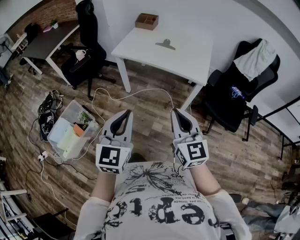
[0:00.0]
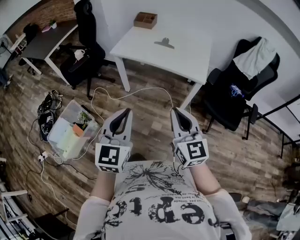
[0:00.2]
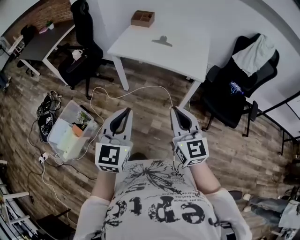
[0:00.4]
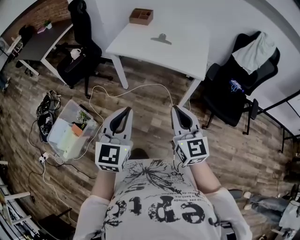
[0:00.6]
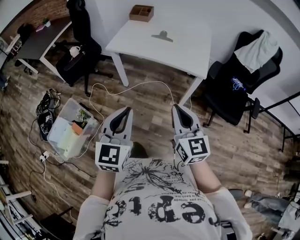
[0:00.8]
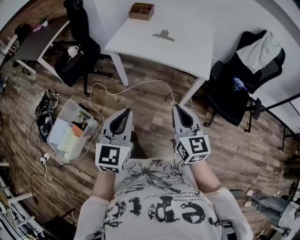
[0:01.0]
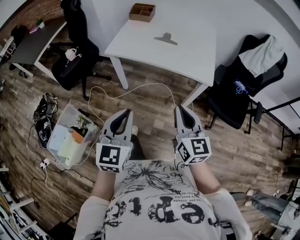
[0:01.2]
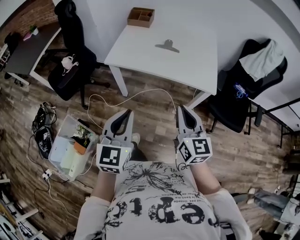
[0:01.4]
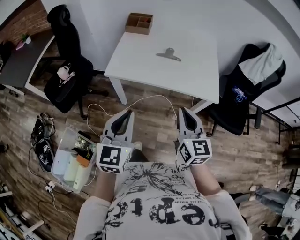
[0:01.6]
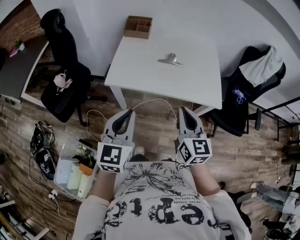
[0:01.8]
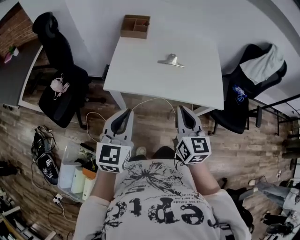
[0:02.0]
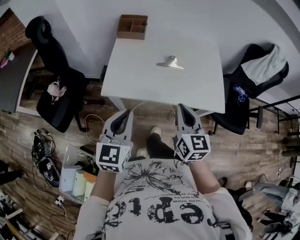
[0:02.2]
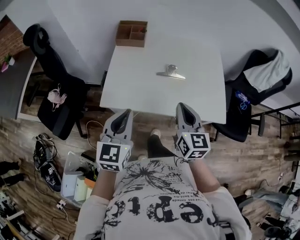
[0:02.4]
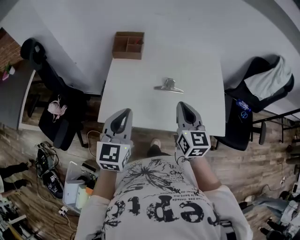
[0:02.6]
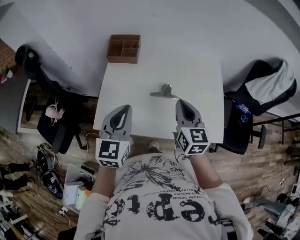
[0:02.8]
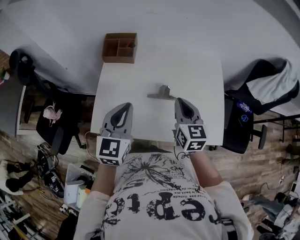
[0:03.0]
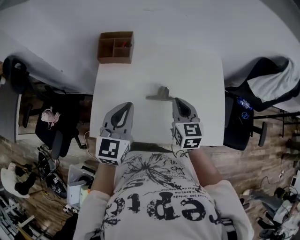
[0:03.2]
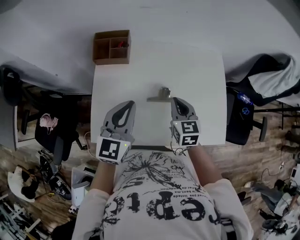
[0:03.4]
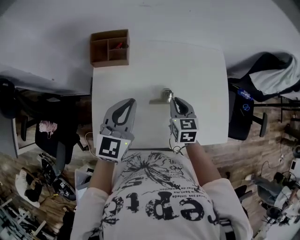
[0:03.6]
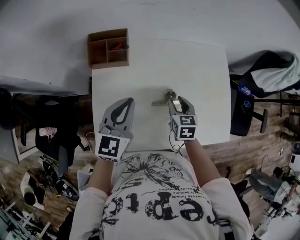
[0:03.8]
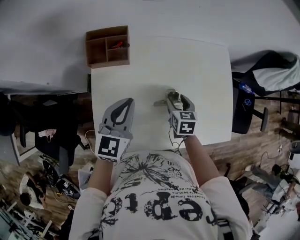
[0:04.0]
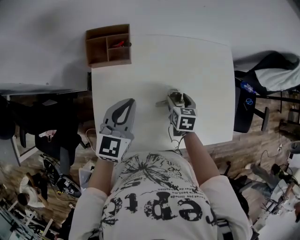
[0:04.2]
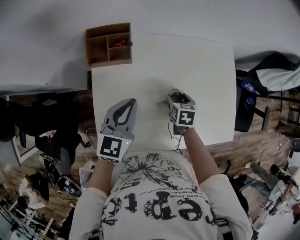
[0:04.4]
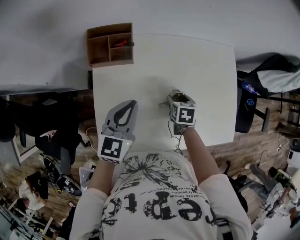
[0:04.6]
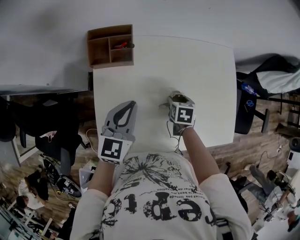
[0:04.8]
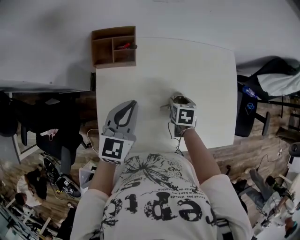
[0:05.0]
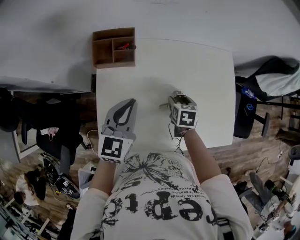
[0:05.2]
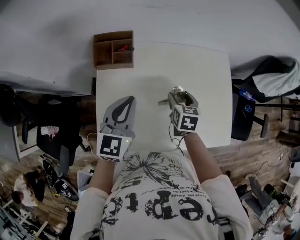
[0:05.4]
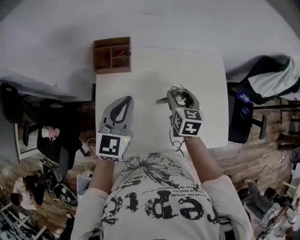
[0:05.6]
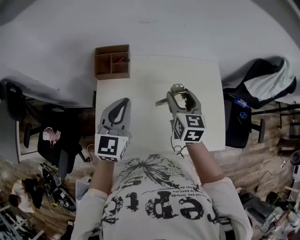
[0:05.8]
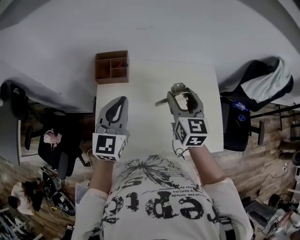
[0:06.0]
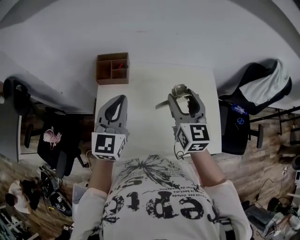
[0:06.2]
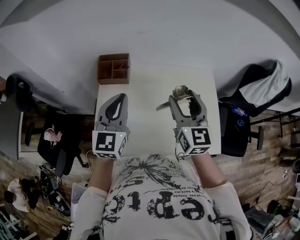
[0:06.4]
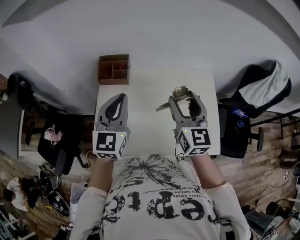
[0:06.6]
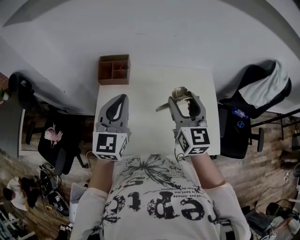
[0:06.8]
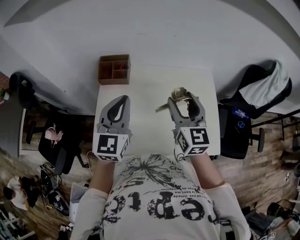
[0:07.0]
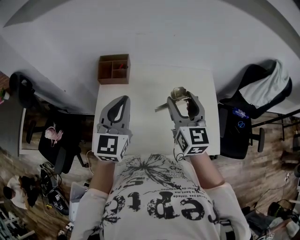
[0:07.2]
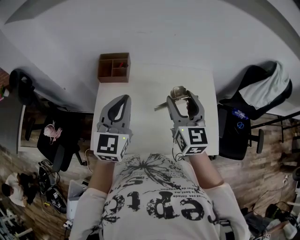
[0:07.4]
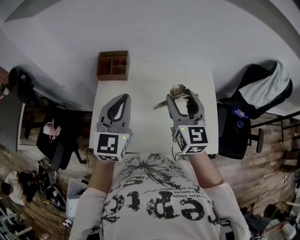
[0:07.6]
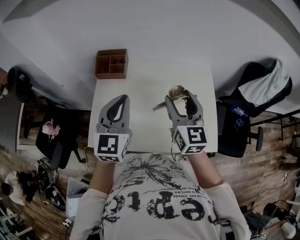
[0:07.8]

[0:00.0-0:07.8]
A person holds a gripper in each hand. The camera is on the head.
0:00.0 to 0:01.6: The grippers both shift forward by some 25 cm. The right gripper changes its angle by about 20 degrees.
0:01.6 to 0:03.2: Both grippers are carried forward, approximately 40 cm.
0:03.2 to 0:04.6: The left gripper heads forward, downward and to the left, covering some 15 cm. The right gripper is displaced downward by roughly 20 cm, tilts its fingers roughly 40 degrees downward, and opens.
0:04.6 to 0:06.2: The left gripper goes some 15 cm upward, and rotates some 20 degrees, while the right gripper travels upward by about 35 cm, and tilts its fingers some 50 degrees upward.
0:06.2 to 0:07.8: The left gripper ends up roughly 5 cm from where it was.

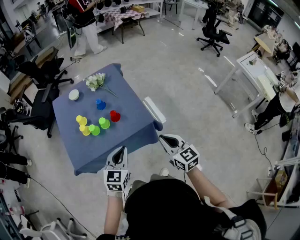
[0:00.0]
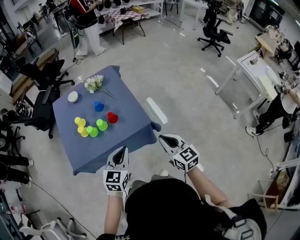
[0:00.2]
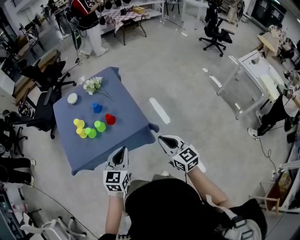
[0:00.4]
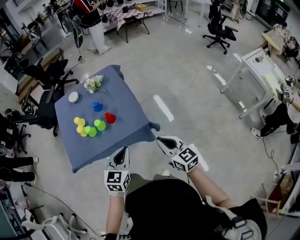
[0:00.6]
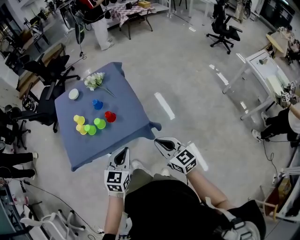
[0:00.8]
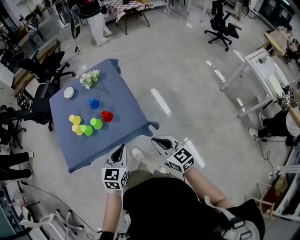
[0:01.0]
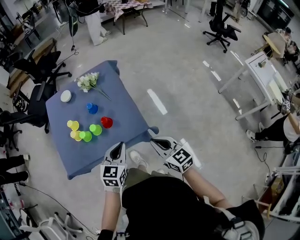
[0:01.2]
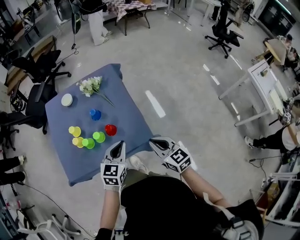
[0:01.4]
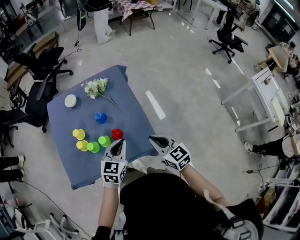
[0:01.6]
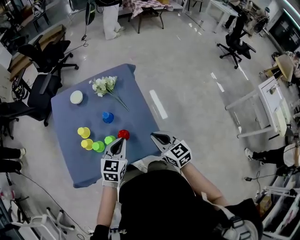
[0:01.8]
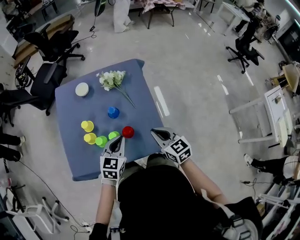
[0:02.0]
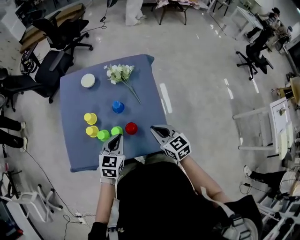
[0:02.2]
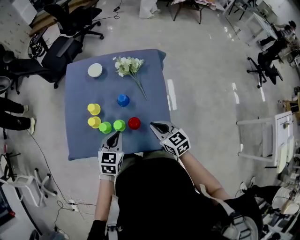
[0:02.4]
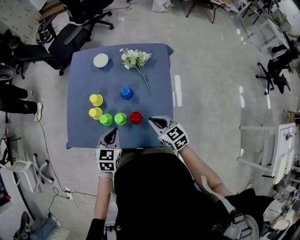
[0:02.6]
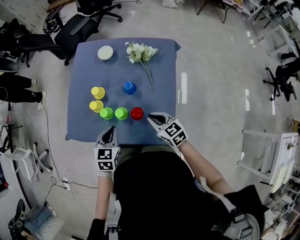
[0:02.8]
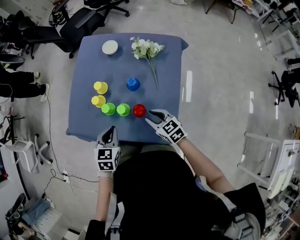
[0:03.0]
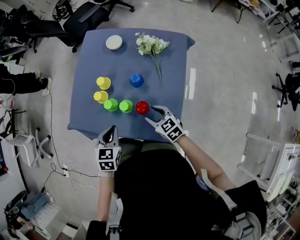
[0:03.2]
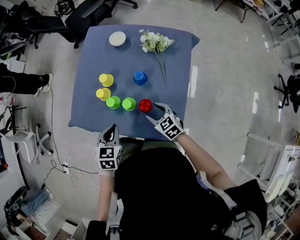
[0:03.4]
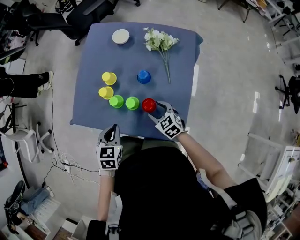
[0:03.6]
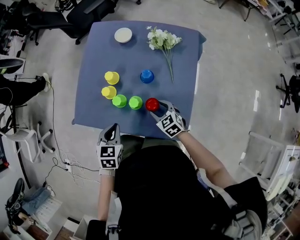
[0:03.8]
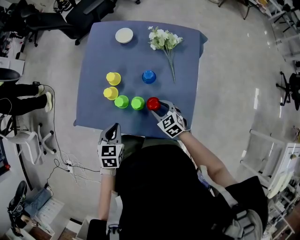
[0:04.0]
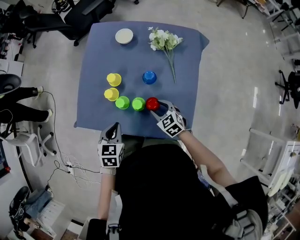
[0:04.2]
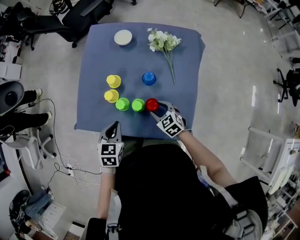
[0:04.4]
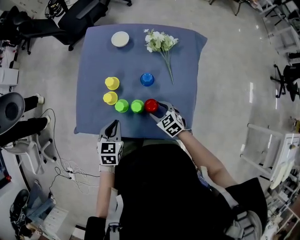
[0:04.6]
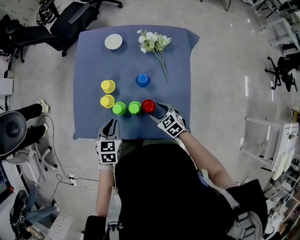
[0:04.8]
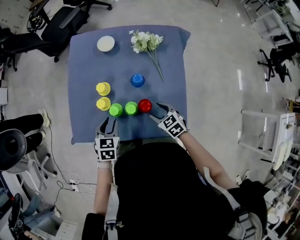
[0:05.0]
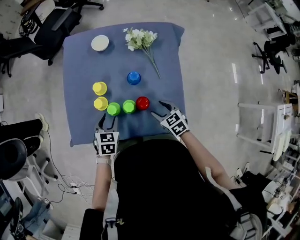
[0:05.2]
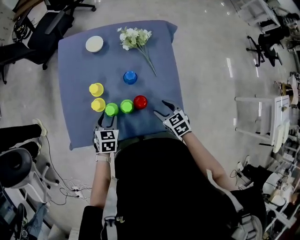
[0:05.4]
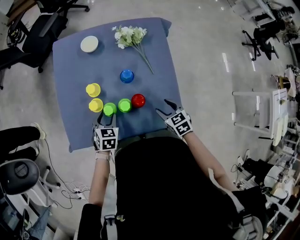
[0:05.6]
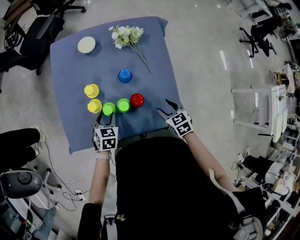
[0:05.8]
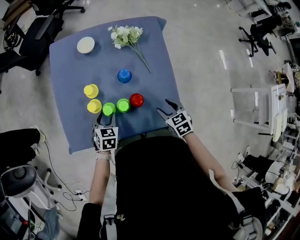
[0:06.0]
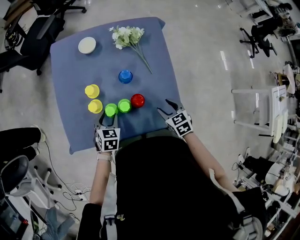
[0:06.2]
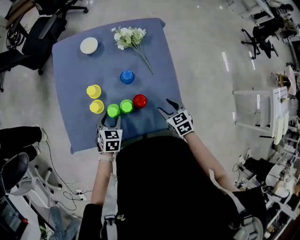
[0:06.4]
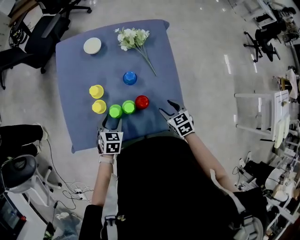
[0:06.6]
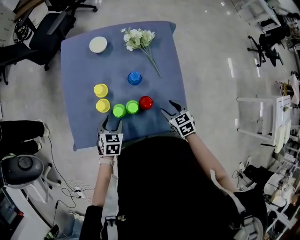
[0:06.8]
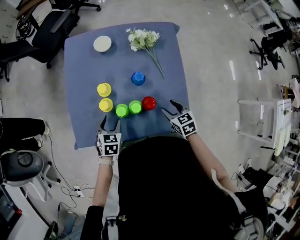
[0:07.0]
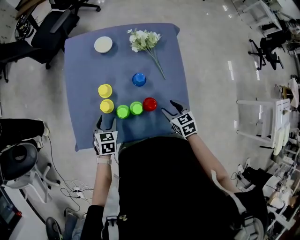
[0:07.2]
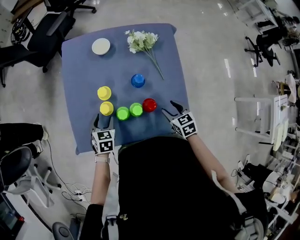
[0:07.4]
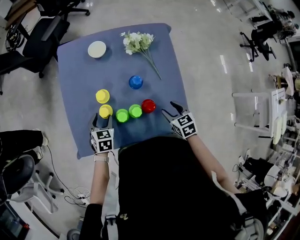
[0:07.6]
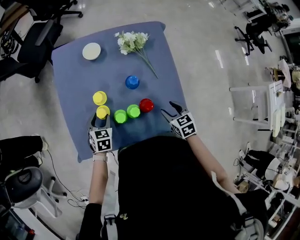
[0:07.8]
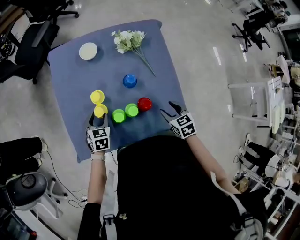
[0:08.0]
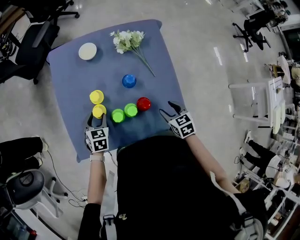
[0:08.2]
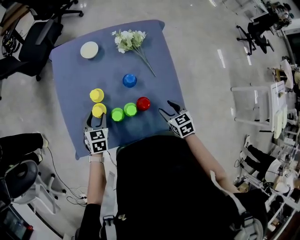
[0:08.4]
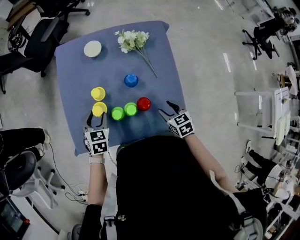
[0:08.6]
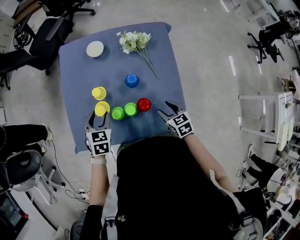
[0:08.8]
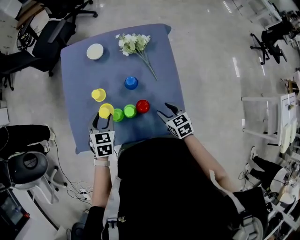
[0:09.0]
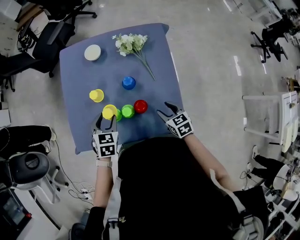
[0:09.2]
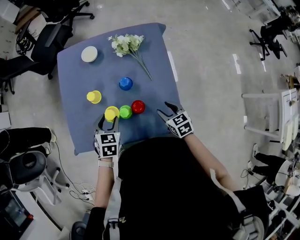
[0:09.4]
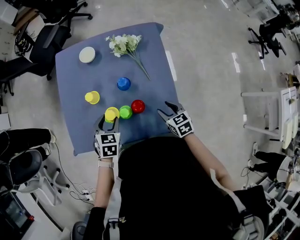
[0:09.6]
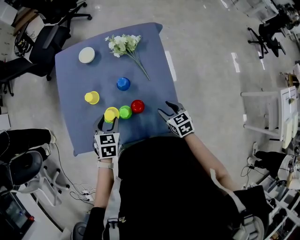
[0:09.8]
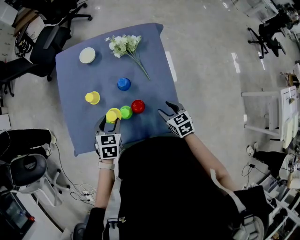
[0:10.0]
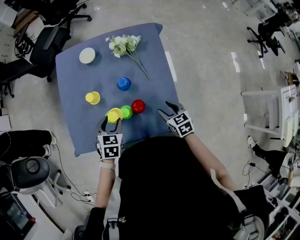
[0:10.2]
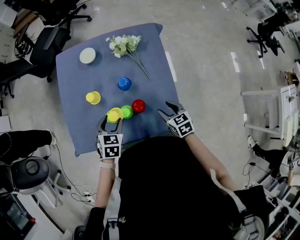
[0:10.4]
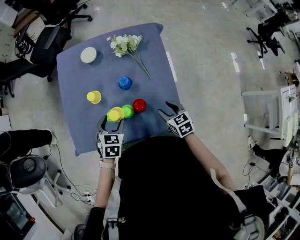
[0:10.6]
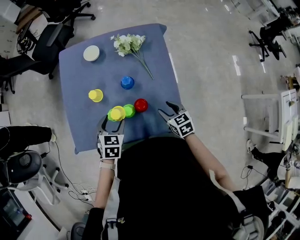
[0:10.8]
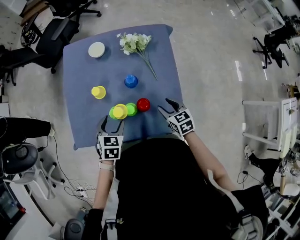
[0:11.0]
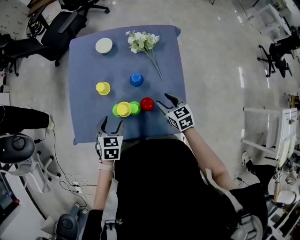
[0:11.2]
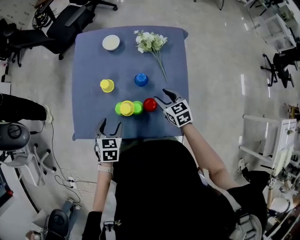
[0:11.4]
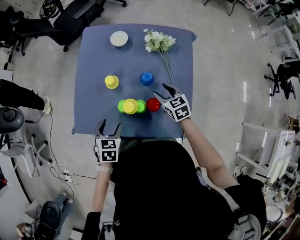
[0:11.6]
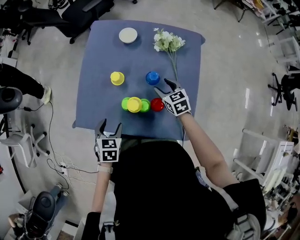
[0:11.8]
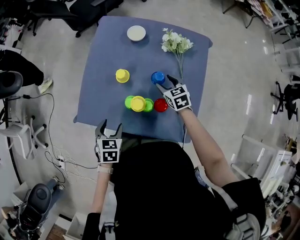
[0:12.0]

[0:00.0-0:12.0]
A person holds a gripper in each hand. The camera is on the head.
0:00.0 to 0:01.6: Both grippers travel together forward, some 20 cm.
0:01.6 to 0:03.0: The right gripper moves some 20 cm, swivels roughly 40 degrees, and opens its fingers. The left gripper moves approximately 15 cm, and changes its angle by roughly 40 degrees.
0:03.0 to 0:04.4: The right gripper goes some 10 cm downward, and opens its fingers, while the left gripper travels to the left by roughly 5 cm.
0:04.4 to 0:06.0: The left gripper heads downward and forward, covering approximately 10 cm, and opens up. The right gripper is displaced to the right and backward by some 10 cm, and rotates roughly 30 degrees.
0:06.0 to 0:07.6: The left gripper shifts roughly 10 cm to the left.
0:07.6 to 0:09.0: The left gripper is displaced upward and to the right by roughly 10 cm.
0:09.0 to 0:10.4: The left gripper goes some 5 cm to the right.
0:10.4 to 0:12.0: The right gripper goes about 20 cm forward and to the left, and rotates roughly 20 degrees, while the left gripper goes about 15 cm to the left and backward, and turns by about 20 degrees.

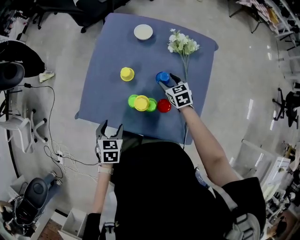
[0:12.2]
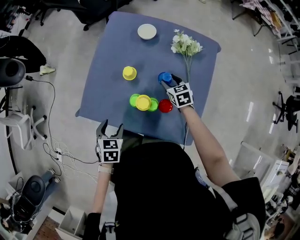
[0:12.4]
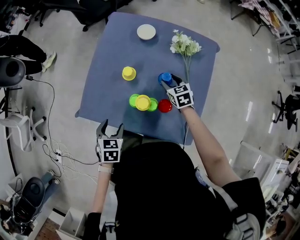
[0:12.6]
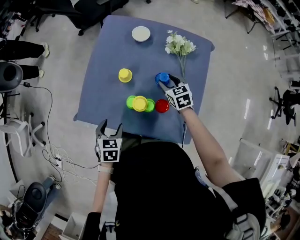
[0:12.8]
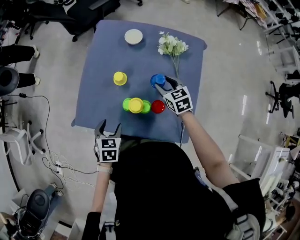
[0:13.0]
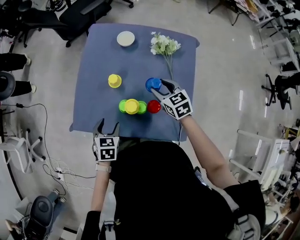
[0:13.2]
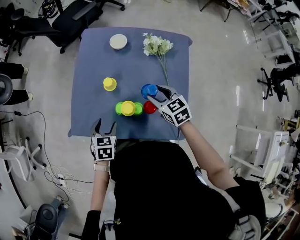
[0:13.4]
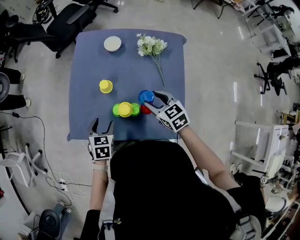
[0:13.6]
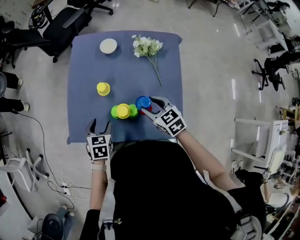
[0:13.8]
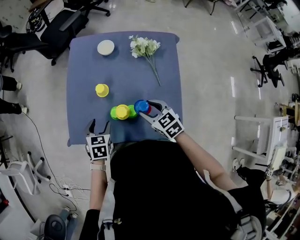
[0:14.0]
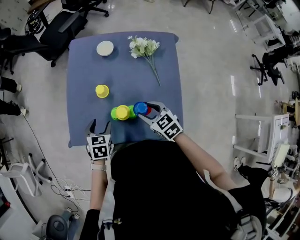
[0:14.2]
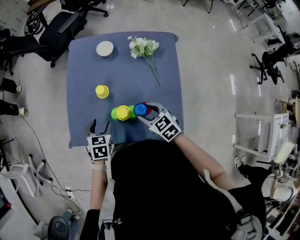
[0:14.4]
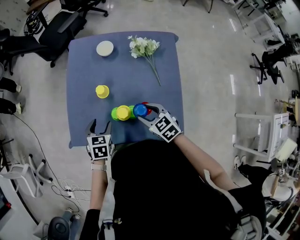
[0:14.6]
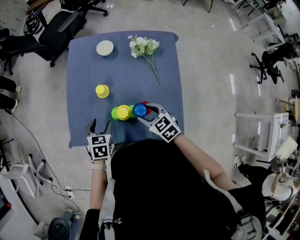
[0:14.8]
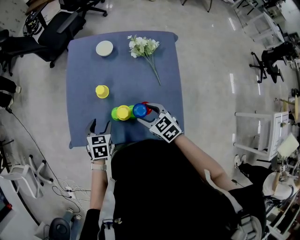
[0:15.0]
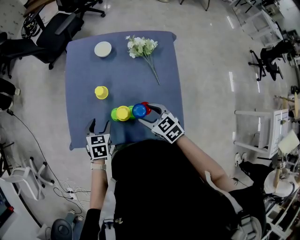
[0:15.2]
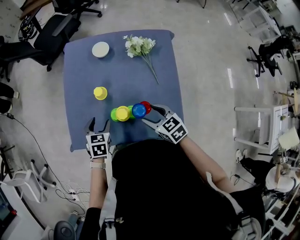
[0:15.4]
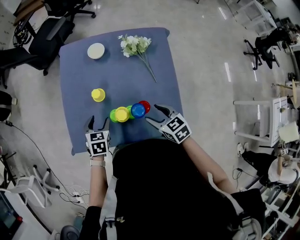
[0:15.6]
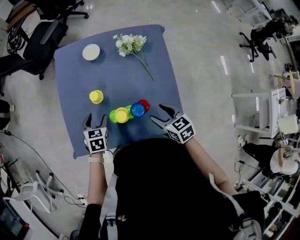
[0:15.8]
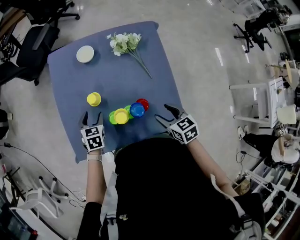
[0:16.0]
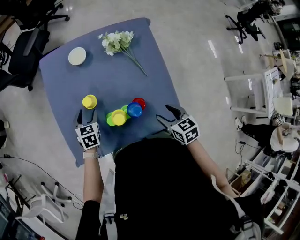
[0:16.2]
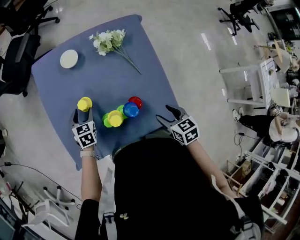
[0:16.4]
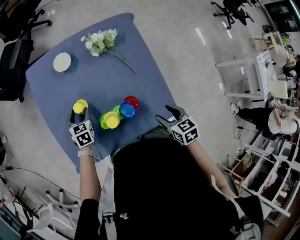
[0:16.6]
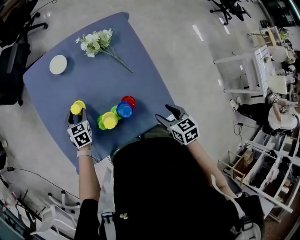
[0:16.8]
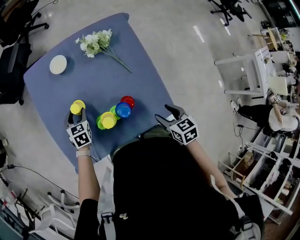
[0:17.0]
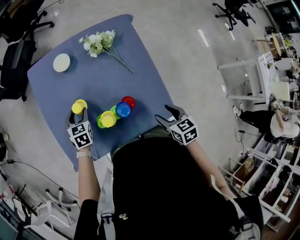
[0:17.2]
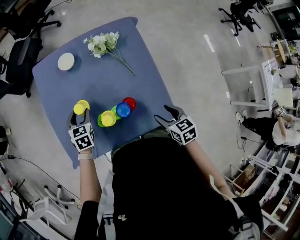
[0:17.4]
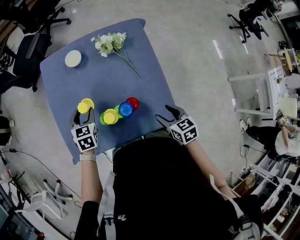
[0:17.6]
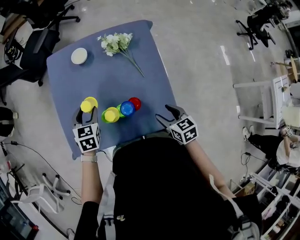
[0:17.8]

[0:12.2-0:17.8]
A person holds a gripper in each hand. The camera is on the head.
0:12.2 to 0:13.6: The right gripper is displaced upward and backward by roughly 15 cm; the left gripper travels forward by roughly 5 cm.
0:13.6 to 0:15.0: The right gripper ends up about 5 cm from where it was.
0:15.0 to 0:16.4: The left gripper is displaced forward and downward by approximately 15 cm. The right gripper travels to the right and backward by approximately 15 cm, and changes its angle by roughly 40 degrees.
0:16.4 to 0:17.8: The left gripper travels upward, to the right and backward by some 15 cm.
